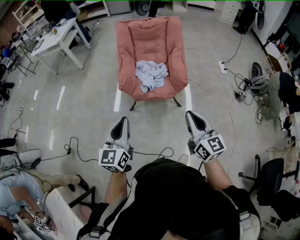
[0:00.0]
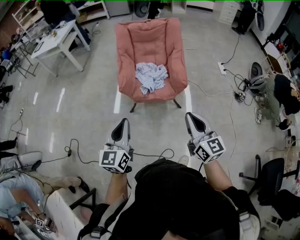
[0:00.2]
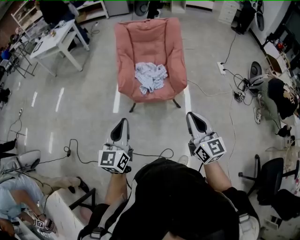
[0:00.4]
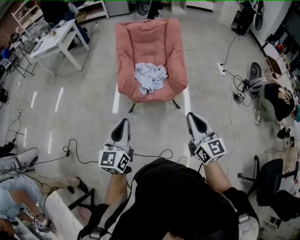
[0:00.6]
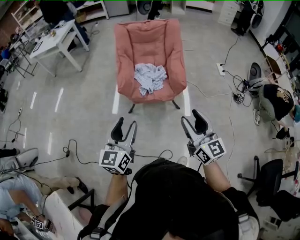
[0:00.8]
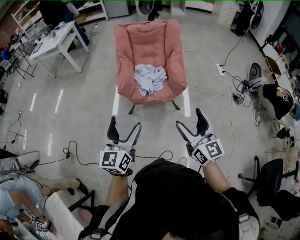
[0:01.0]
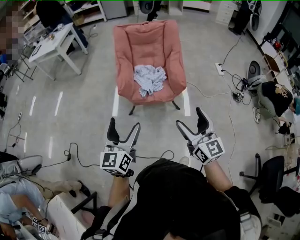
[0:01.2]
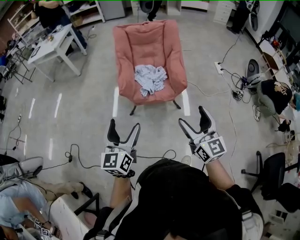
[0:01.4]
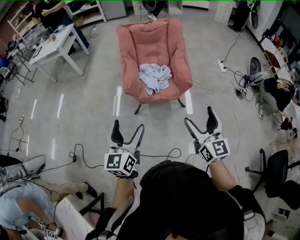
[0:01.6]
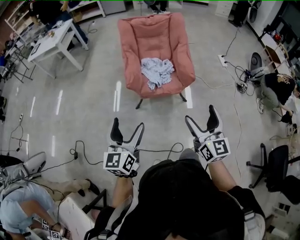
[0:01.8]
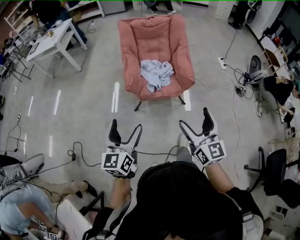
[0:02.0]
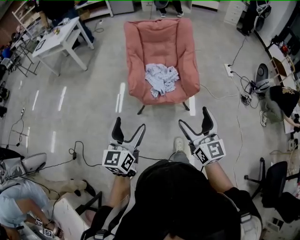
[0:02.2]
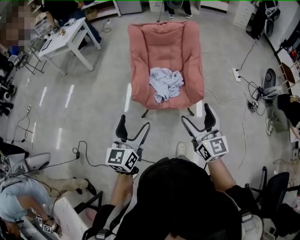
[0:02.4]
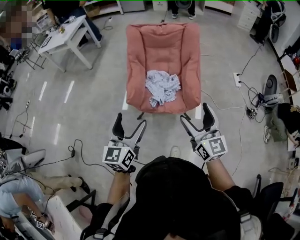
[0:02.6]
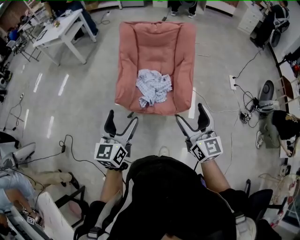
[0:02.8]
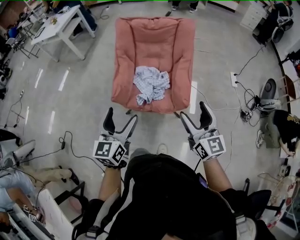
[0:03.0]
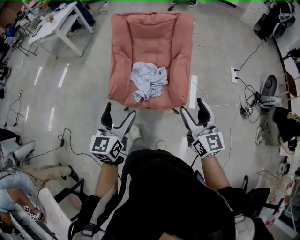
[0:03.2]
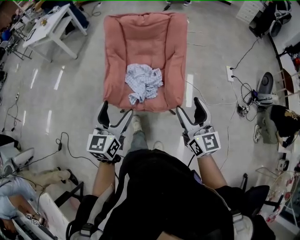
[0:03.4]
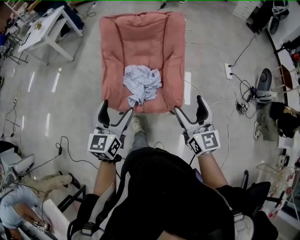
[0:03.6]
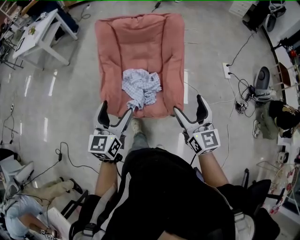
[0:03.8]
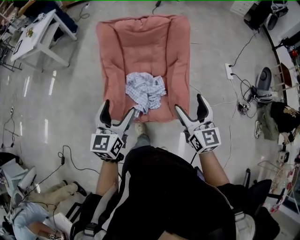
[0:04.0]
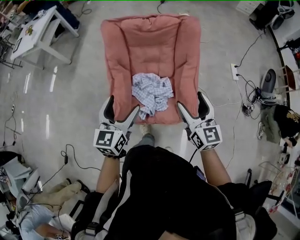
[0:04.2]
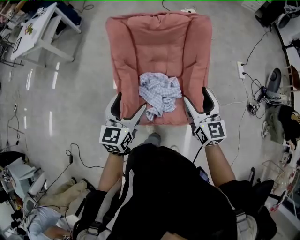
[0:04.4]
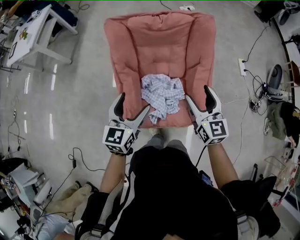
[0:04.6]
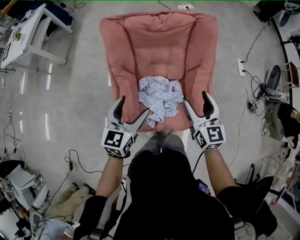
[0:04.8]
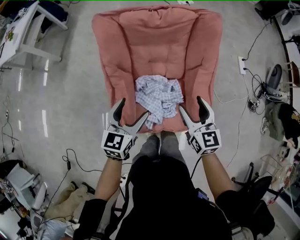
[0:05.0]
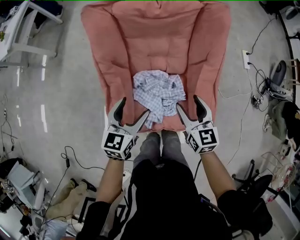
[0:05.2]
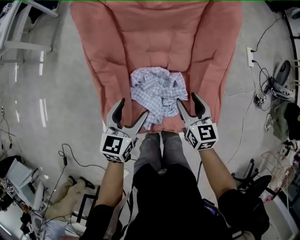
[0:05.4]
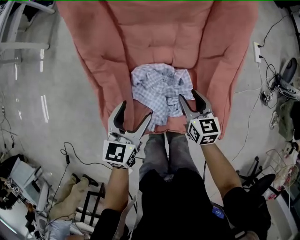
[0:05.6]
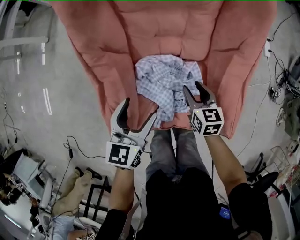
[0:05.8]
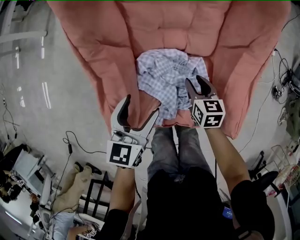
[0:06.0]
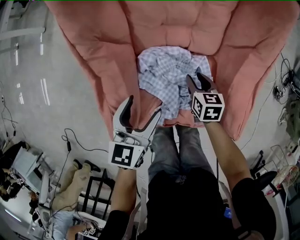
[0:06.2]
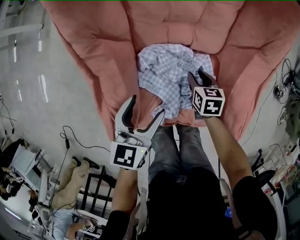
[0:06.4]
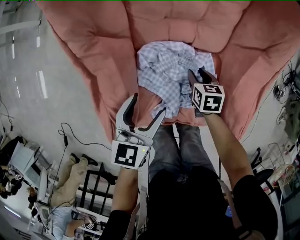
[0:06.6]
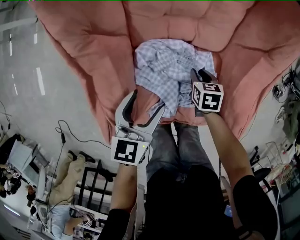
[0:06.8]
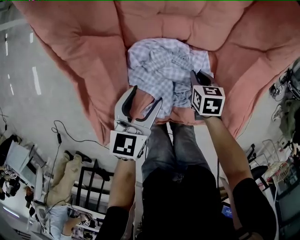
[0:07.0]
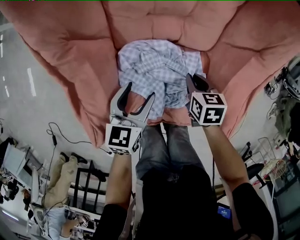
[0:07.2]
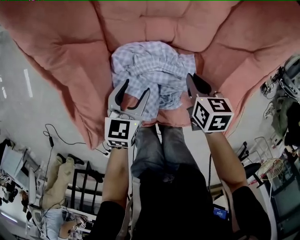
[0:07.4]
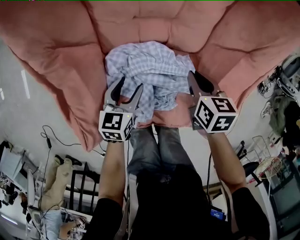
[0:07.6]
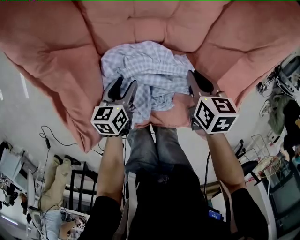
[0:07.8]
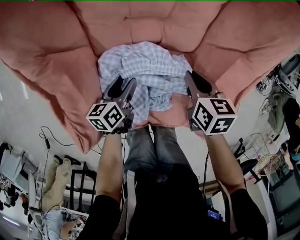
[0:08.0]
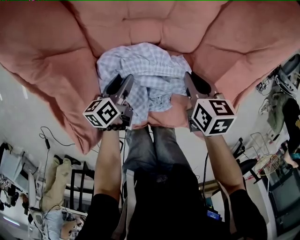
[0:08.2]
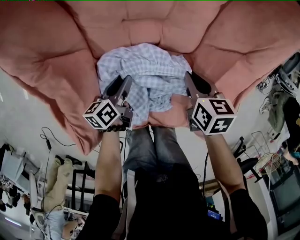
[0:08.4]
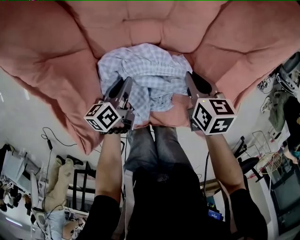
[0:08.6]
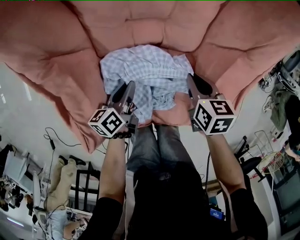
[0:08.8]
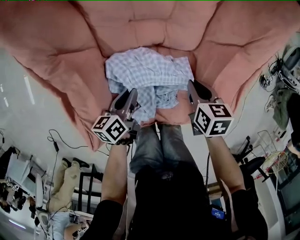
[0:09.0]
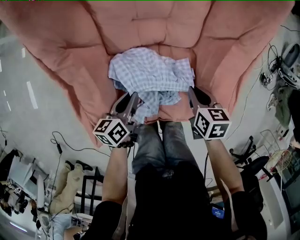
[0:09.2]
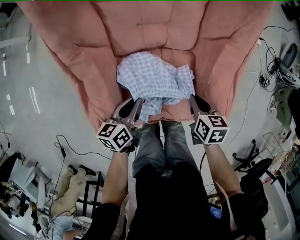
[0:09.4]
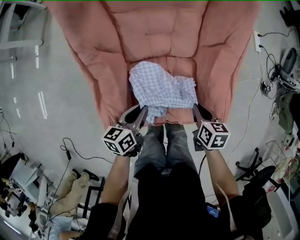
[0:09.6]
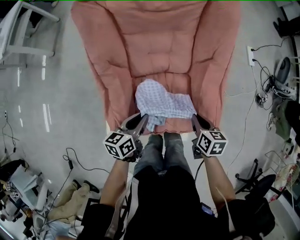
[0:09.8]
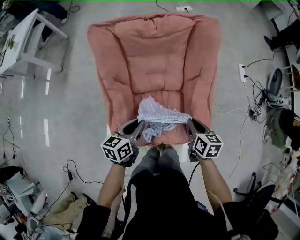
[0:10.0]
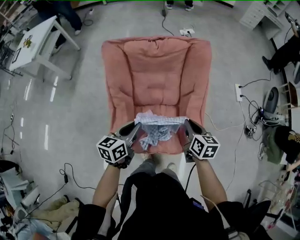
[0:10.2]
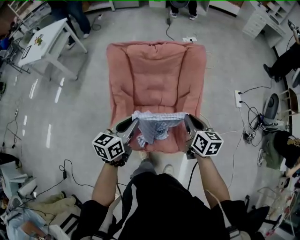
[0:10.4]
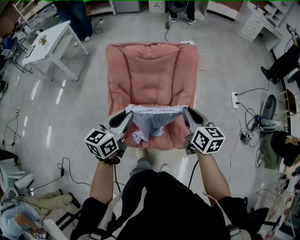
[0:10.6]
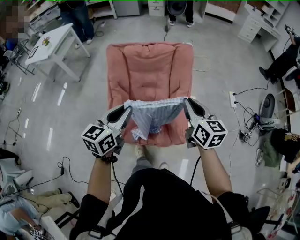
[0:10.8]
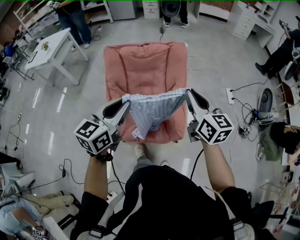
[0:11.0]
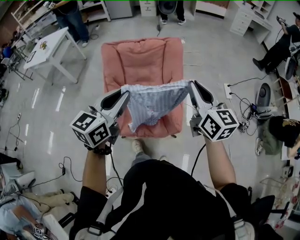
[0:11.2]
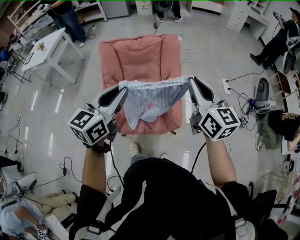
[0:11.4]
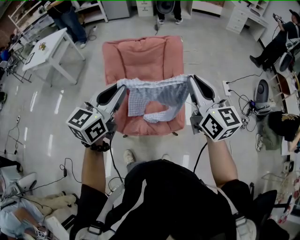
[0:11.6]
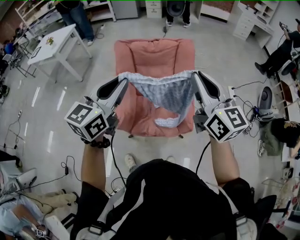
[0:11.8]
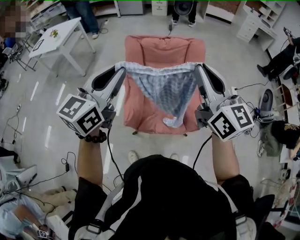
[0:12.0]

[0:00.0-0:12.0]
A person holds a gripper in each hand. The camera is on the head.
0:00.0 to 0:01.6: The right gripper opens up, while the left gripper is displaced to the left by about 5 cm, and opens.
0:01.6 to 0:03.0: The grippers both shift forward and to the right by approximately 25 cm.
0:03.0 to 0:04.4: The two grippers go about 30 cm forward.
0:04.4 to 0:06.0: The grippers both shift downward by some 35 cm. The right gripper angles its fingers downward, by about 40 degrees, and closes up.
0:06.0 to 0:07.6: The right gripper goes approximately 5 cm to the right, and goes downward and returns, about 10 cm each way; the left gripper goes about 20 cm downward.
0:07.6 to 0:09.0: The left gripper changes its angle by approximately 30 degrees, and closes its fingers.
0:09.0 to 0:10.4: Both grippers travel together upward, about 40 cm. The right gripper angles its fingers upward, by about 30 degrees. The left gripper turns by some 40 degrees.
0:10.4 to 0:12.0: Both grippers move upward and backward, about 35 cm. The right gripper tilts its fingers approximately 40 degrees upward. The left gripper rotates roughly 30 degrees.

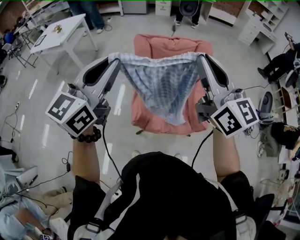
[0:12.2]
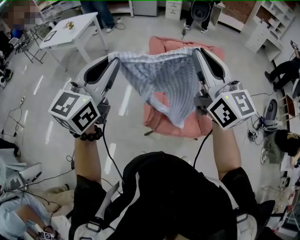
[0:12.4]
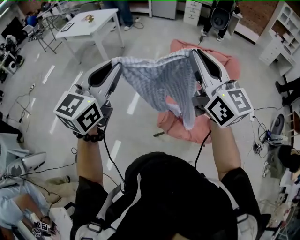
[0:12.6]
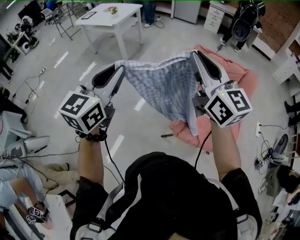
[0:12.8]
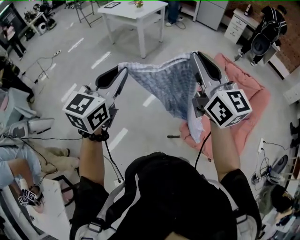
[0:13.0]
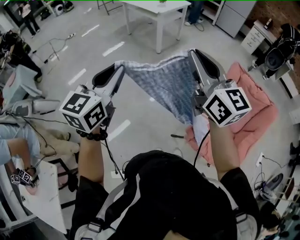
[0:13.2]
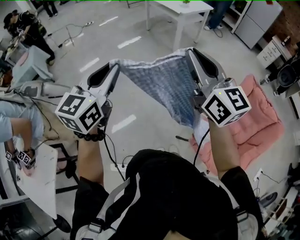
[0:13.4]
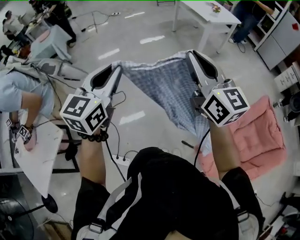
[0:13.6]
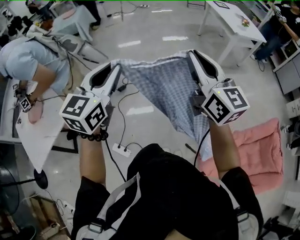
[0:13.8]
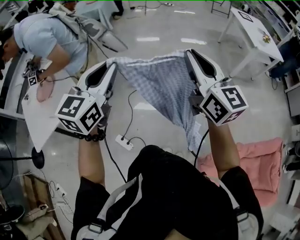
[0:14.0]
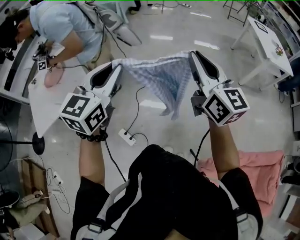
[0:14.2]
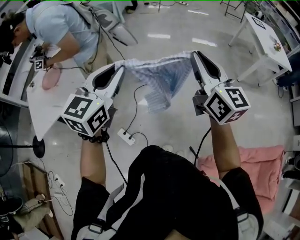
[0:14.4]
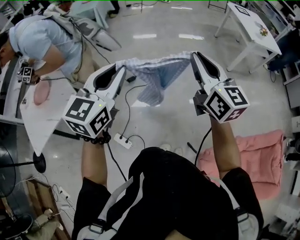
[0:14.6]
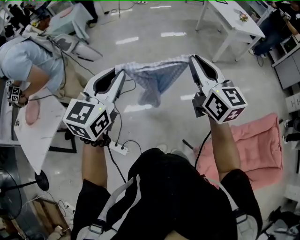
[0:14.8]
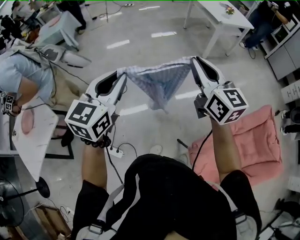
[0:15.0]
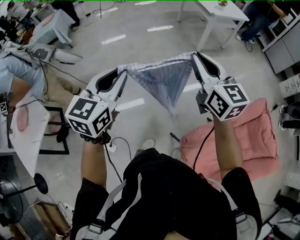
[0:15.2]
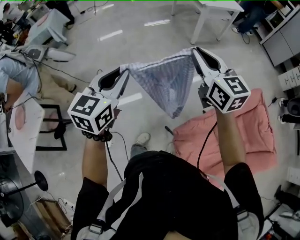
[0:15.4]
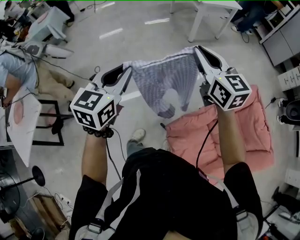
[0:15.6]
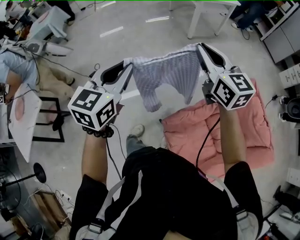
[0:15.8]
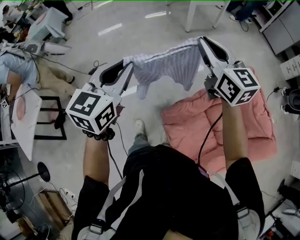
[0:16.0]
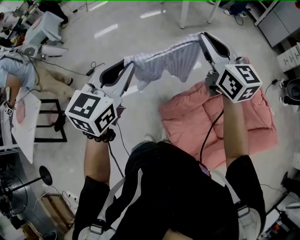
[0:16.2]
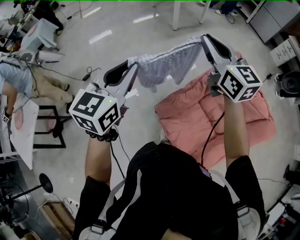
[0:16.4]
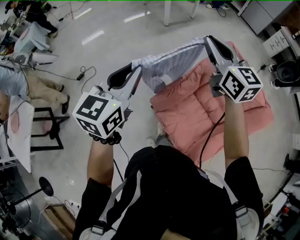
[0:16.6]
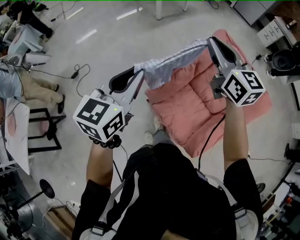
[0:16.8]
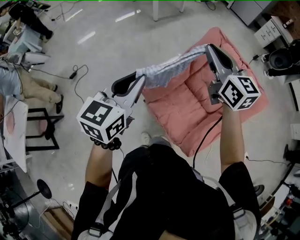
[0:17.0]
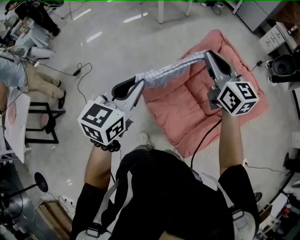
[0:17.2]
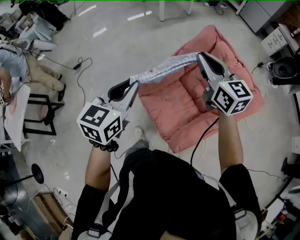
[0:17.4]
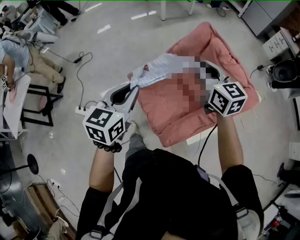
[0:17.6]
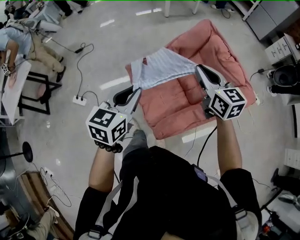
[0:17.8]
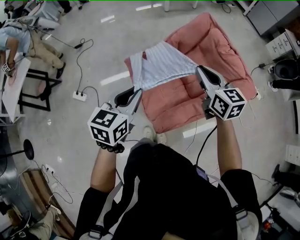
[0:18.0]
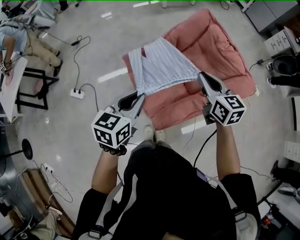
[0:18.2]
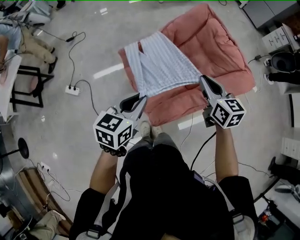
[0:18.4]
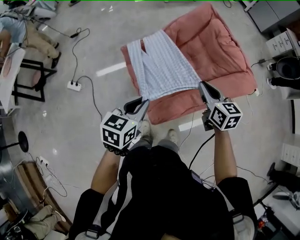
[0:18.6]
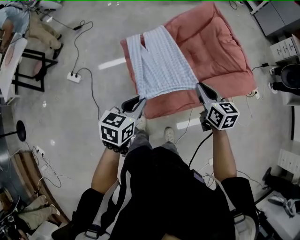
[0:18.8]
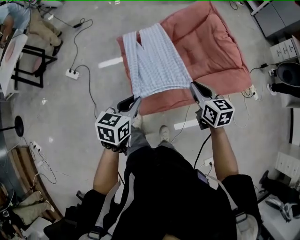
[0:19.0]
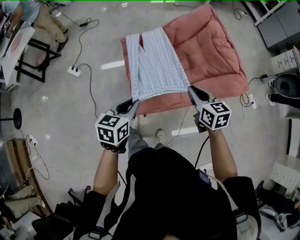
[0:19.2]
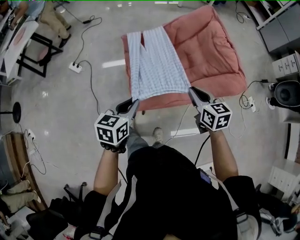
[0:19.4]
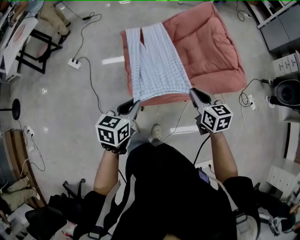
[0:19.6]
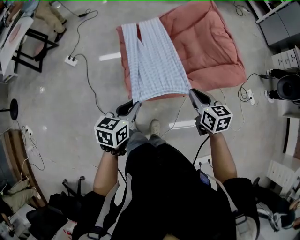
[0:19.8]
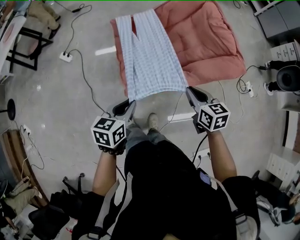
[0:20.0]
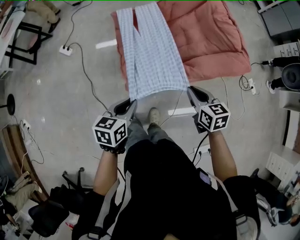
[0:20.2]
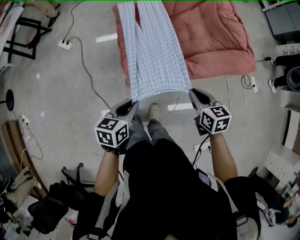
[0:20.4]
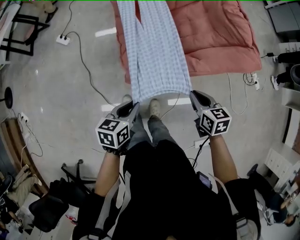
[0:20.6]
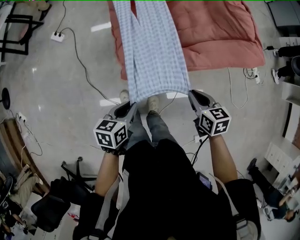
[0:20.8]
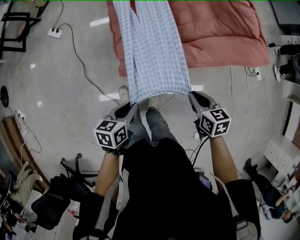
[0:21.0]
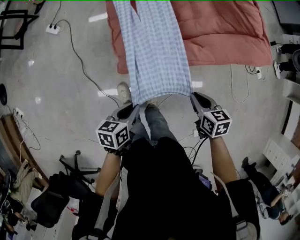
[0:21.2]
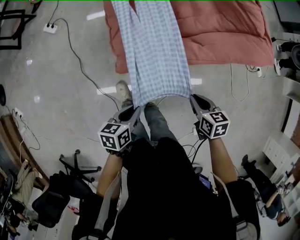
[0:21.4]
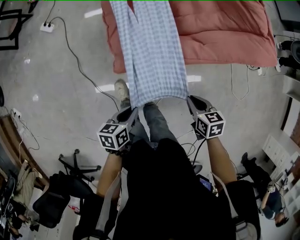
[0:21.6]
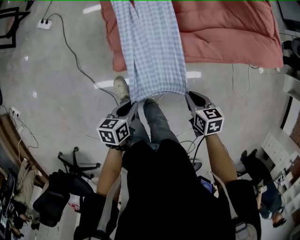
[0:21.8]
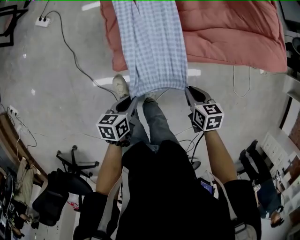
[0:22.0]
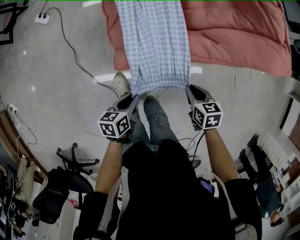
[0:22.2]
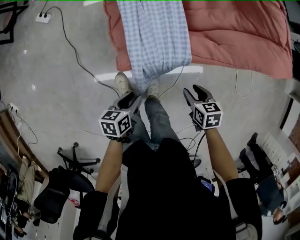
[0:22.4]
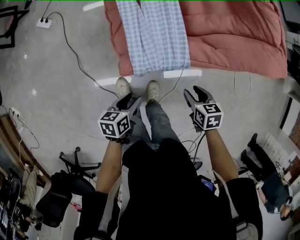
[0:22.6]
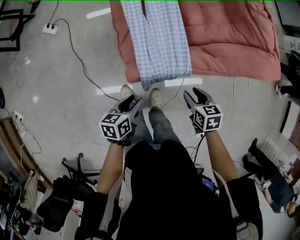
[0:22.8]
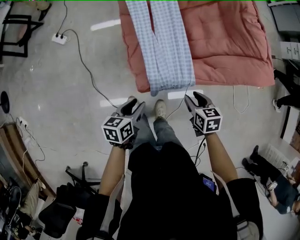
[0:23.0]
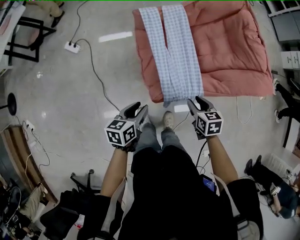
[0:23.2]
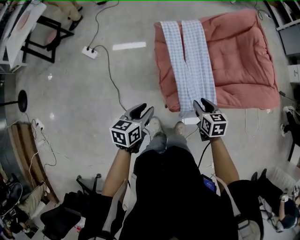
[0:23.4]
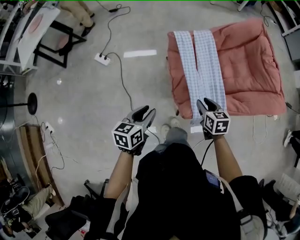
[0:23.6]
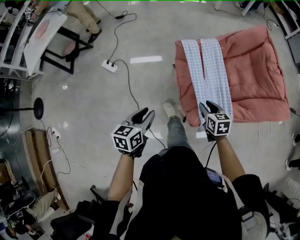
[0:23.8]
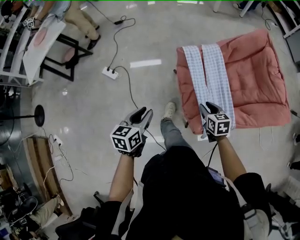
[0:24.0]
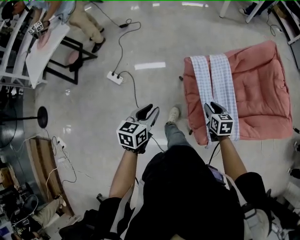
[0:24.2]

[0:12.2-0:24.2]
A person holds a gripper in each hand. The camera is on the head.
0:12.2 to 0:13.8: Both grippers are carried approximately 60 cm. The left gripper changes its angle by about 80 degrees. Meanwhile the right gripper rotates about 70 degrees.
0:13.8 to 0:15.2: Both grippers move to the right, roughly 20 cm.
0:15.2 to 0:16.6: Both grippers move to the right and backward, approximately 35 cm.
0:16.6 to 0:18.2: Both grippers travel together backward, to the right and downward, some 40 cm. The left gripper swivels roughly 20 degrees. The right gripper changes its angle by roughly 20 degrees.
0:18.2 to 0:19.8: The two grippers go about 25 cm backward, to the right and downward. The right gripper changes its angle by approximately 20 degrees.
0:19.8 to 0:21.2: Both grippers travel together downward and backward, roughly 20 cm. The left gripper changes its angle by roughly 20 degrees; the right gripper rotates some 20 degrees.
0:21.2 to 0:22.6: Both grippers travel together downward, approximately 10 cm.
0:22.6 to 0:24.2: The pair of grippers is taken to the left and forward, some 50 cm. The left gripper shifts approximately 30 cm upward, and rotates about 30 degrees, while the right gripper shifts about 15 cm upward.
